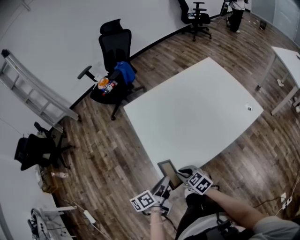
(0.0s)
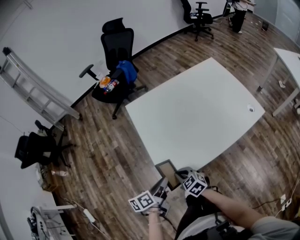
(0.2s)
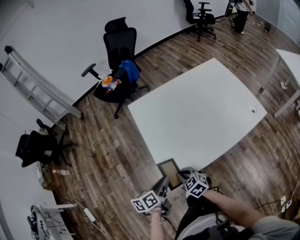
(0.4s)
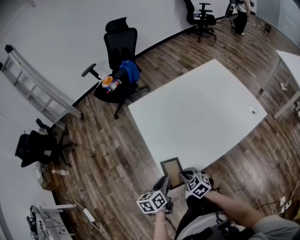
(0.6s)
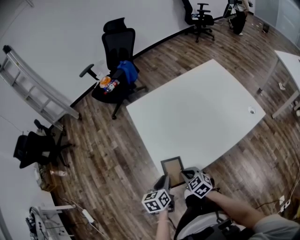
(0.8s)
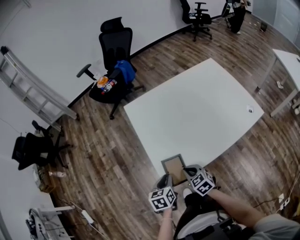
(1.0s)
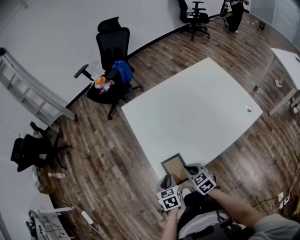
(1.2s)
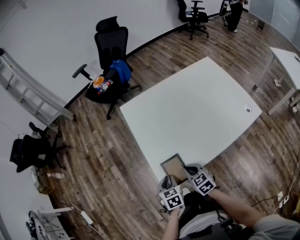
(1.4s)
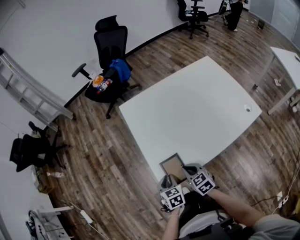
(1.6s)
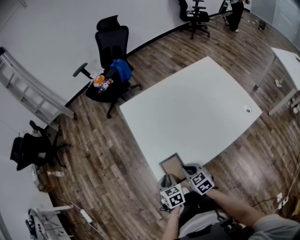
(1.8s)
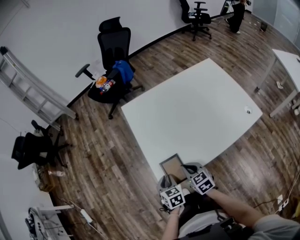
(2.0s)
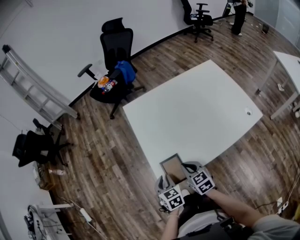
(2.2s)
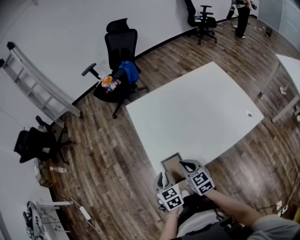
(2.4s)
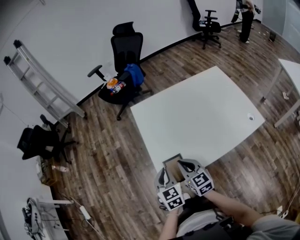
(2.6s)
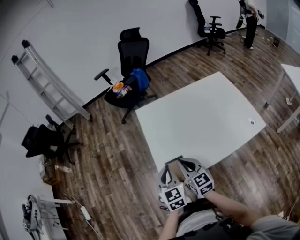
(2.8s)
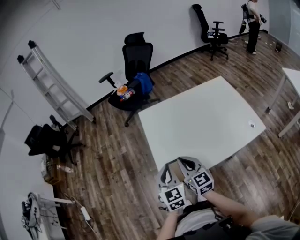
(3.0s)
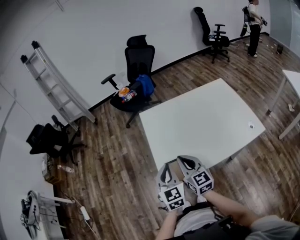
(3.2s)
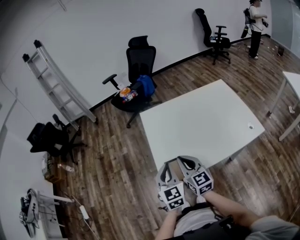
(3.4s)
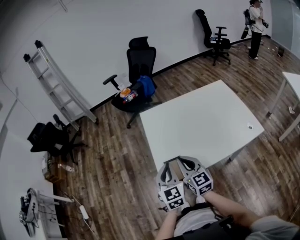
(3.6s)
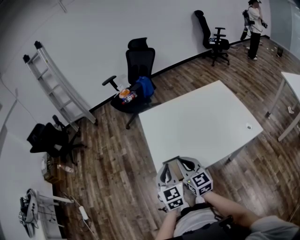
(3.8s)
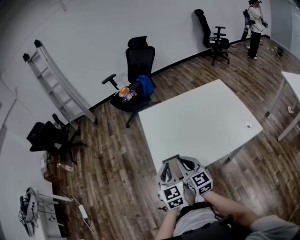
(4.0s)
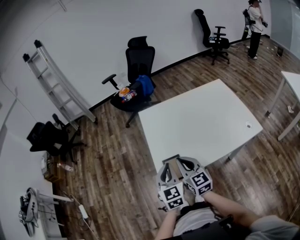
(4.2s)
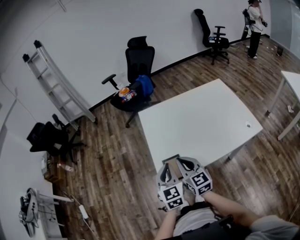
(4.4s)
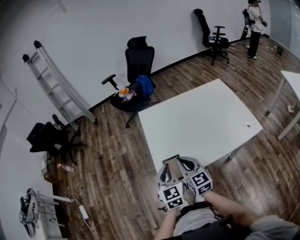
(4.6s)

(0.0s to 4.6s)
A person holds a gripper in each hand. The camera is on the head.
0.0s - 1.6s: The left gripper shifts roughly 10 cm downward, and rotates some 50 degrees. The right gripper moves about 5 cm.
1.6s - 3.0s: Both grippers move upward, some 20 cm. The right gripper tips its fingers upward by approximately 30 degrees. The left gripper angles its fingers upward, by roughly 30 degrees.
3.0s - 4.6s: There are only small adjustments of the grippers.

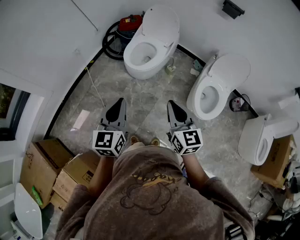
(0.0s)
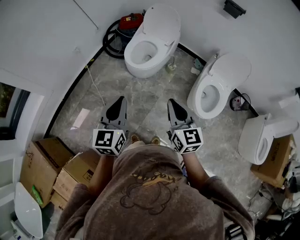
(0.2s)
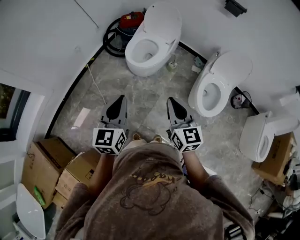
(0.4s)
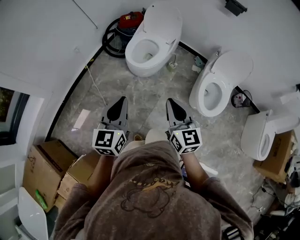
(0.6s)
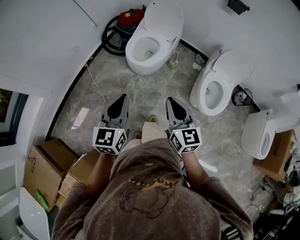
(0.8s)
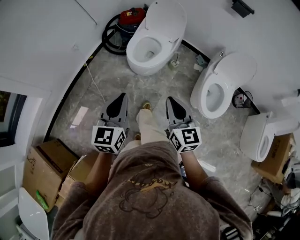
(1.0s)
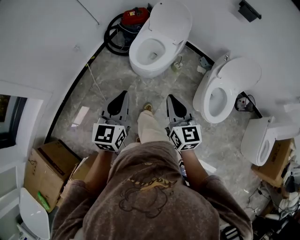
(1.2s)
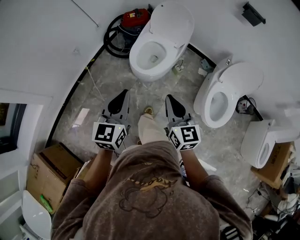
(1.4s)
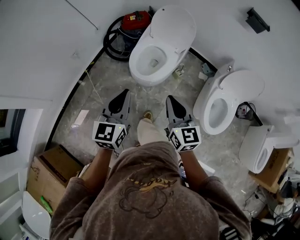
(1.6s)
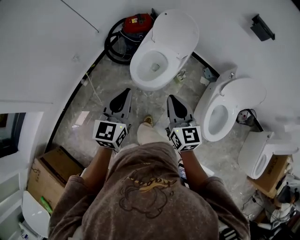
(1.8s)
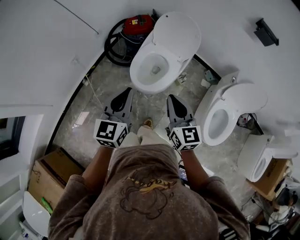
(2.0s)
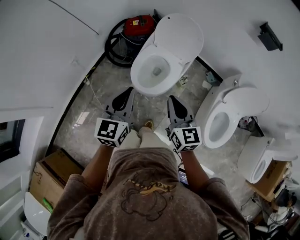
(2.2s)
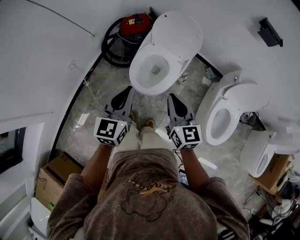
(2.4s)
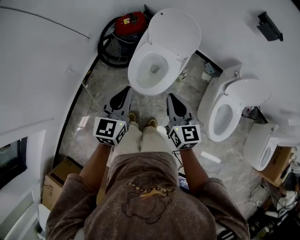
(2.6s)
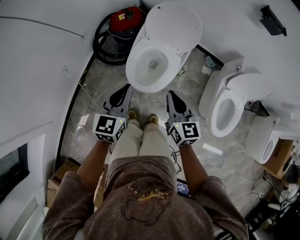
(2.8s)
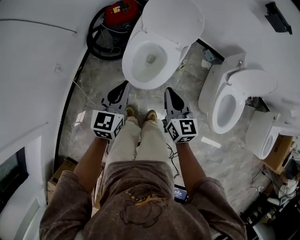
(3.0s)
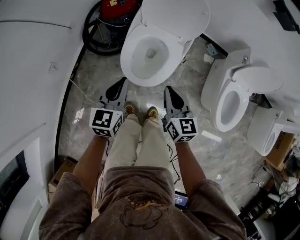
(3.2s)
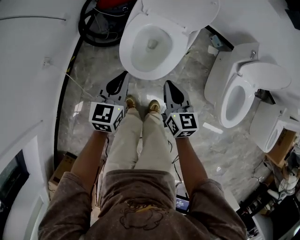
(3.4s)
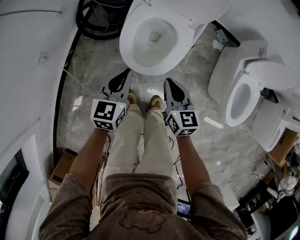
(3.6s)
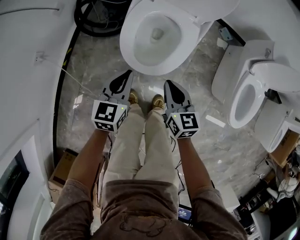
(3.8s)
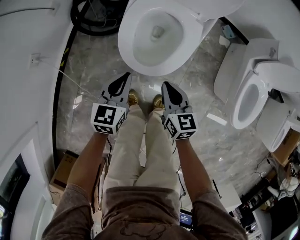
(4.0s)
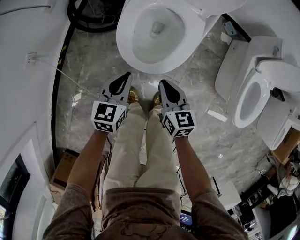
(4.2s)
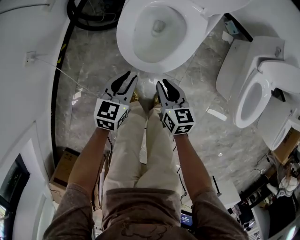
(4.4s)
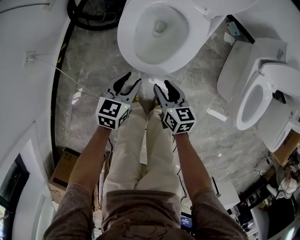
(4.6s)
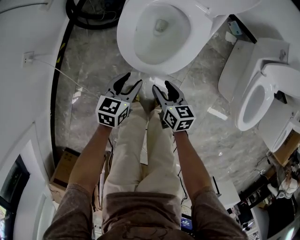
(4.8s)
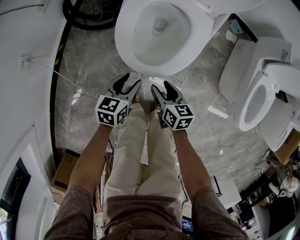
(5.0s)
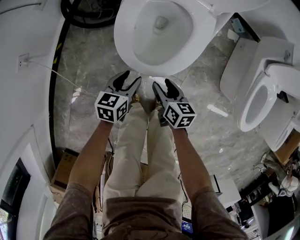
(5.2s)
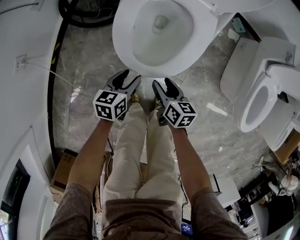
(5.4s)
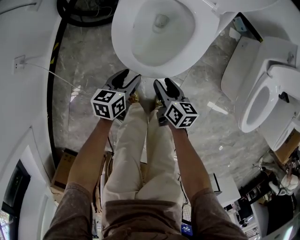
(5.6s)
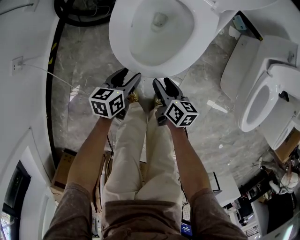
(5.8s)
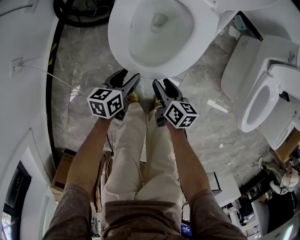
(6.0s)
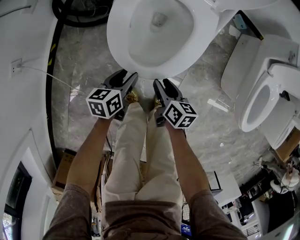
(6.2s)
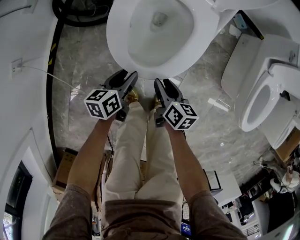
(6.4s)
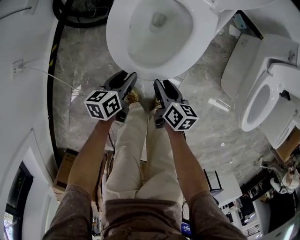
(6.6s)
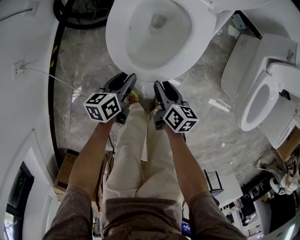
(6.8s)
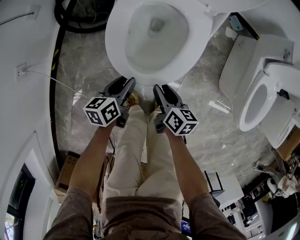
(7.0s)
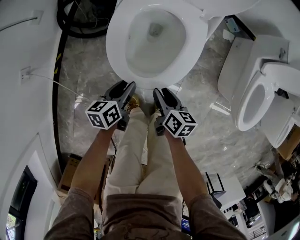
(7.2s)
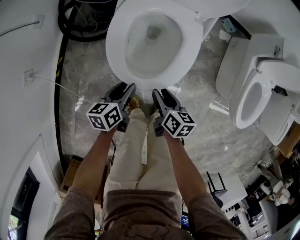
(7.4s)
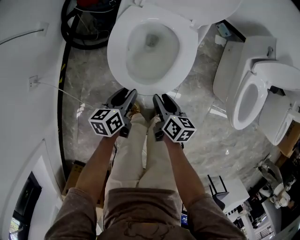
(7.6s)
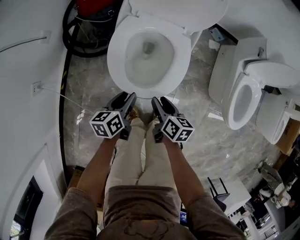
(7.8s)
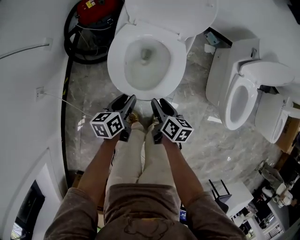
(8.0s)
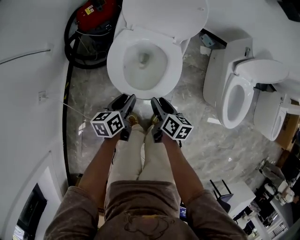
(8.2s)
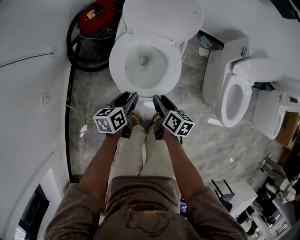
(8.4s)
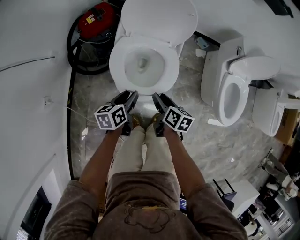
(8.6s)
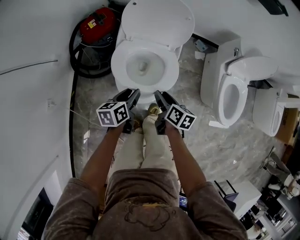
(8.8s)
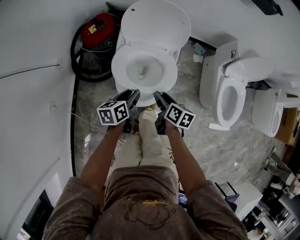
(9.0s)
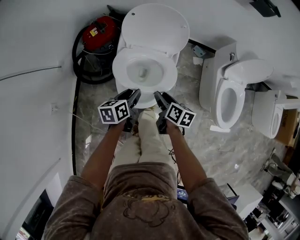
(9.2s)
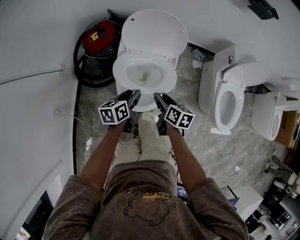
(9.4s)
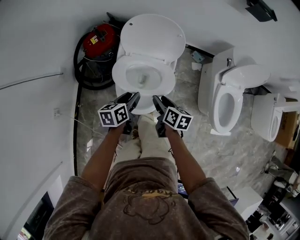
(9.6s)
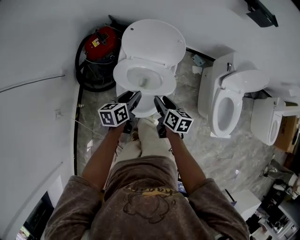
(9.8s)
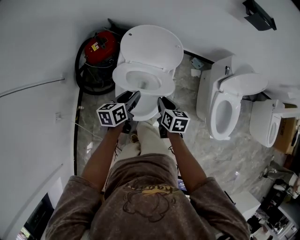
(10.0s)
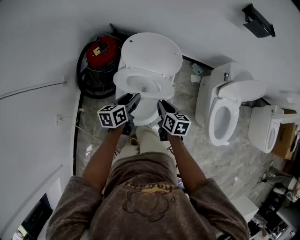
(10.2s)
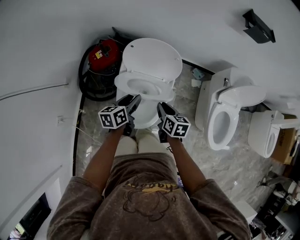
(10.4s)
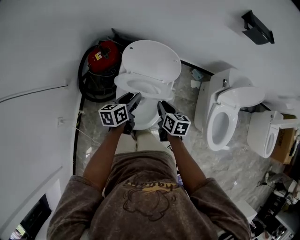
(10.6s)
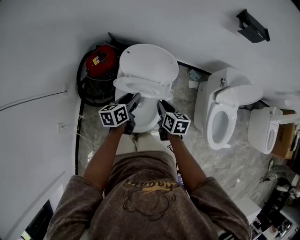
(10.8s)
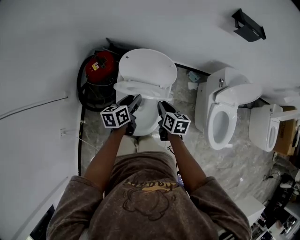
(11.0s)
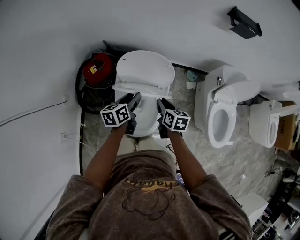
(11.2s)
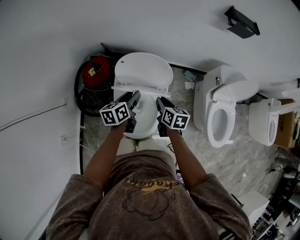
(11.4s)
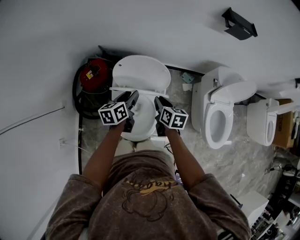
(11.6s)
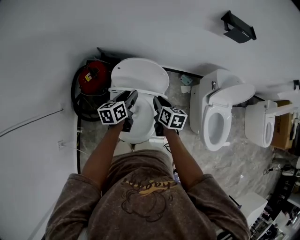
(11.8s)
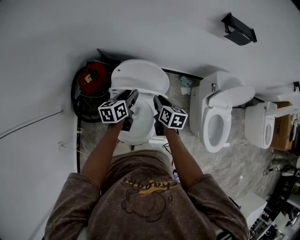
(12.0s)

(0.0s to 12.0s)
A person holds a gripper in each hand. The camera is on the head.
0.0s - 1.6s: Both grippers move forward, about 20 cm.
1.6s - 3.0s: Both grippers travel together forward and downward, about 25 cm.
3.0s - 4.4s: The grippers both shift downward by approximately 30 cm.
4.4s - 6.0s: Both grippers move downward, some 15 cm. The right gripper swivels about 30 degrees, and opens; the left gripper turns by about 30 degrees, and opens its fingers.
6.0s - 7.6s: Both grippers travel together upward, about 10 cm.
7.6s - 9.0s: The grippers both shift upward and forward by about 15 cm.
9.0s - 10.4s: Both grippers move forward and upward, approximately 15 cm. The right gripper closes up.
10.4s - 12.0s: Both grippers move forward, some 15 cm.

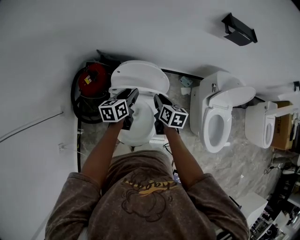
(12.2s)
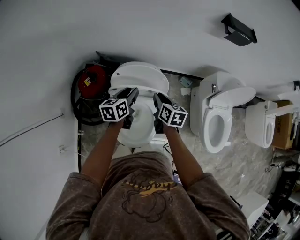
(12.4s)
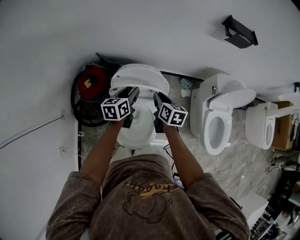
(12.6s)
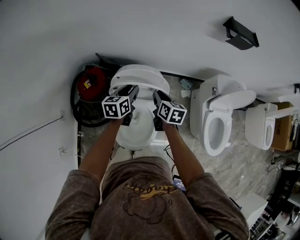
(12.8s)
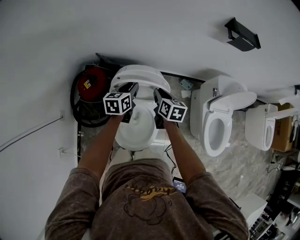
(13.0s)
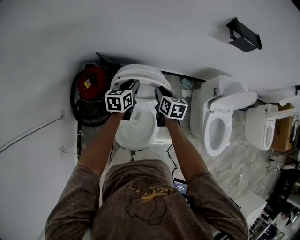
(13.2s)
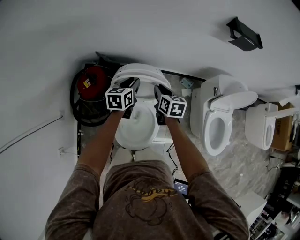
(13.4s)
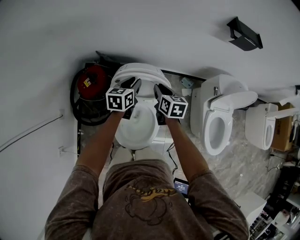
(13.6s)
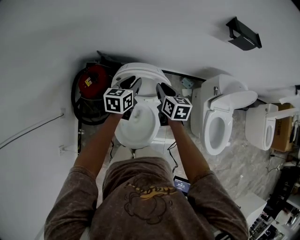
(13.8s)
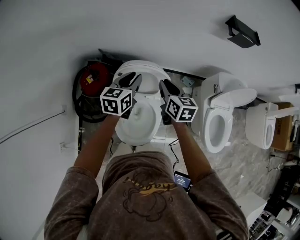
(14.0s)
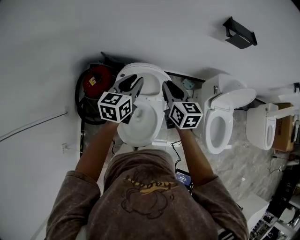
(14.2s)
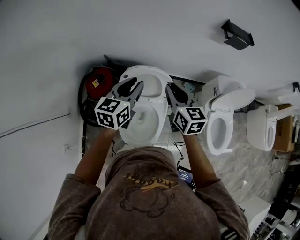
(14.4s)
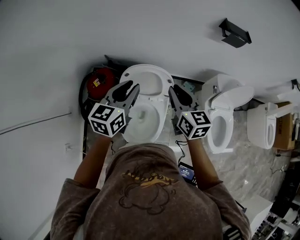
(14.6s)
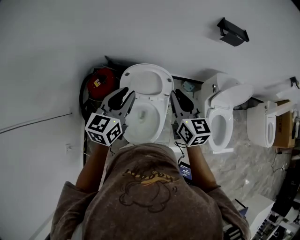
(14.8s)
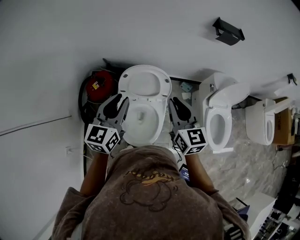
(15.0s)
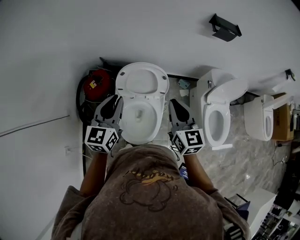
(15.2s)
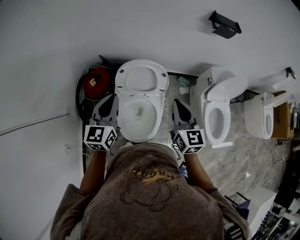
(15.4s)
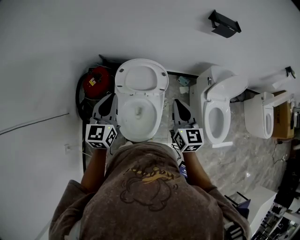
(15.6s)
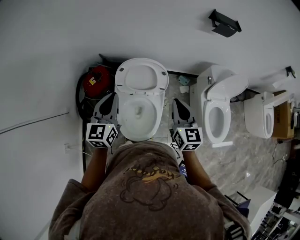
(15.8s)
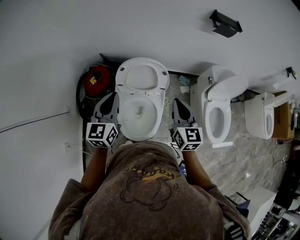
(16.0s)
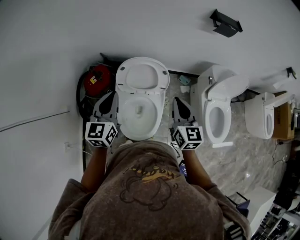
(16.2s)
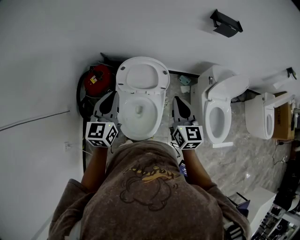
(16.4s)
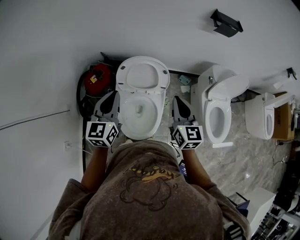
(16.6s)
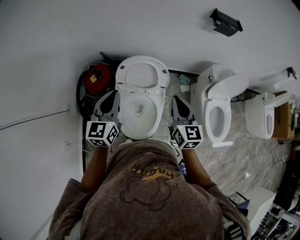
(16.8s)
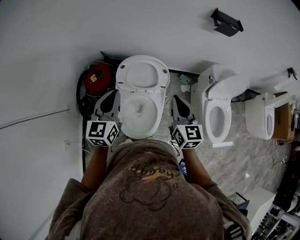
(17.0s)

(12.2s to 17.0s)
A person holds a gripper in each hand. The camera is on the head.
12.2s - 13.8s: Both grippers move forward, roughly 5 cm.
13.8s - 15.4s: The right gripper moves backward and upward, some 25 cm, and changes its angle by roughly 30 degrees. Meanwhile the left gripper heads backward, upward and to the left, covering roughly 25 cm, changes its angle by about 30 degrees, and closes.
15.4s - 17.0s: The grippers stay close to where they were, moving slightly.

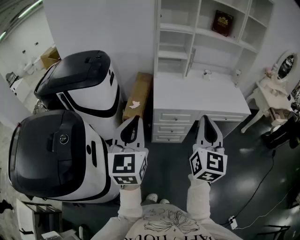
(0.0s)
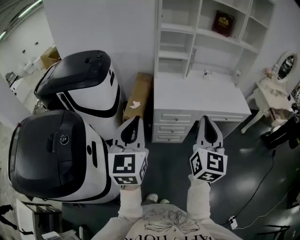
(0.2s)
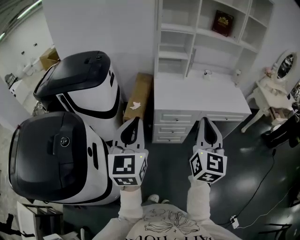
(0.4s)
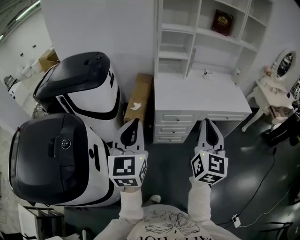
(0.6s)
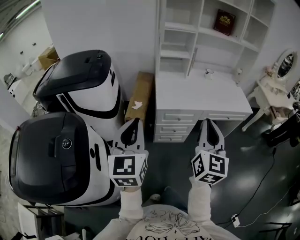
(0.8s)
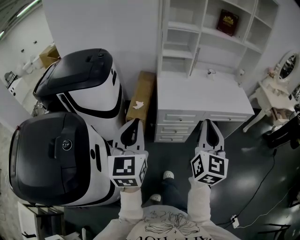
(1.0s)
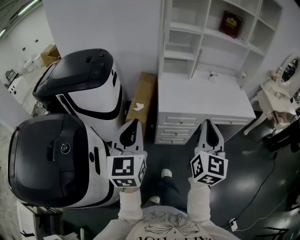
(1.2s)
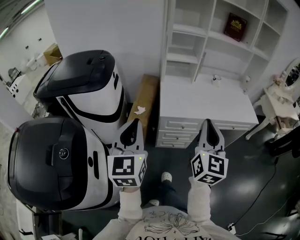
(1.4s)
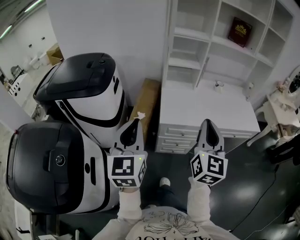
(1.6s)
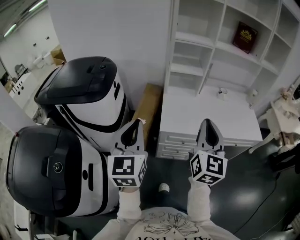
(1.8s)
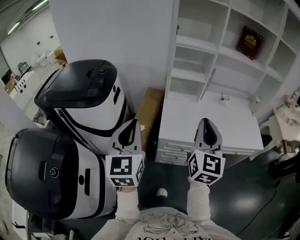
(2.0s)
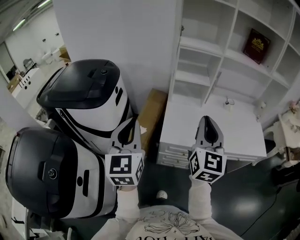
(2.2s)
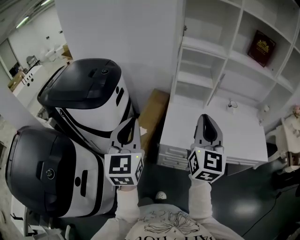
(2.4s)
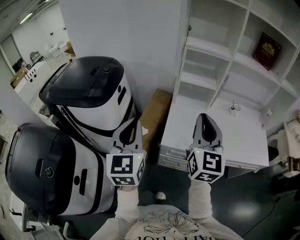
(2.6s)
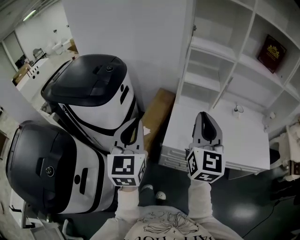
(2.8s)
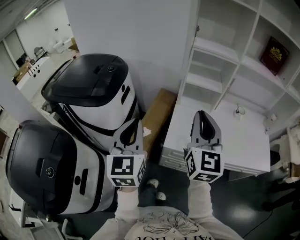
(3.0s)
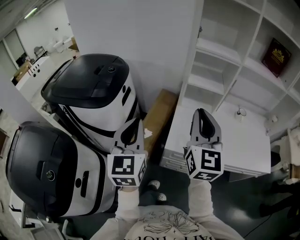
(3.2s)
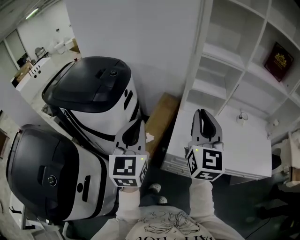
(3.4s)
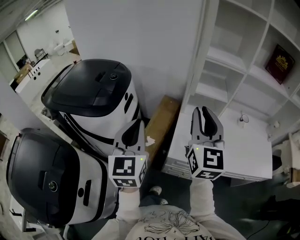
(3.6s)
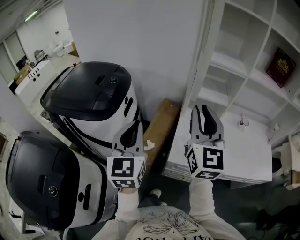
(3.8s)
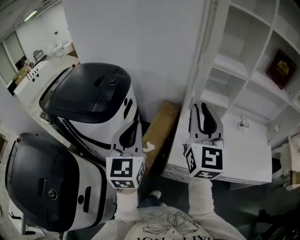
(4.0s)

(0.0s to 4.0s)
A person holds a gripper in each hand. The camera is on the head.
0.0s - 1.4s: The left gripper moves forward and to the left, some 10 cm. Meanwhile the right gripper goes about 10 cm forward.
1.4s - 2.6s: The grippers both shift forward by roughly 25 cm.
2.6s - 4.0s: The left gripper heads forward and to the left, covering about 10 cm, while the right gripper shifts approximately 15 cm forward, to the left and upward.
